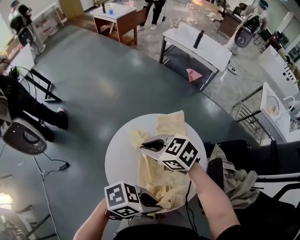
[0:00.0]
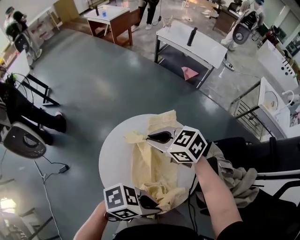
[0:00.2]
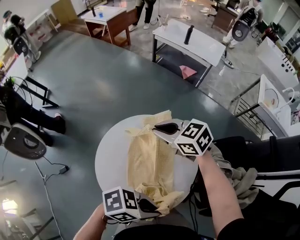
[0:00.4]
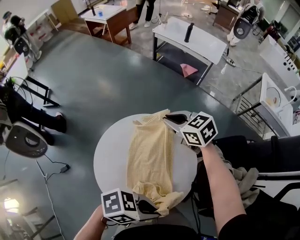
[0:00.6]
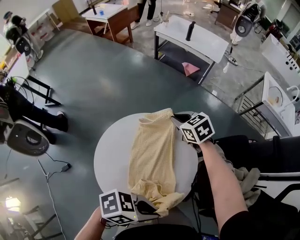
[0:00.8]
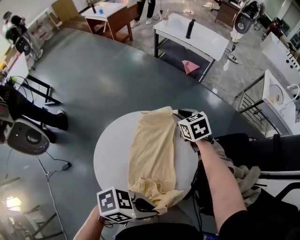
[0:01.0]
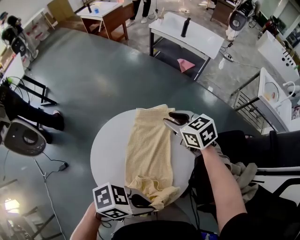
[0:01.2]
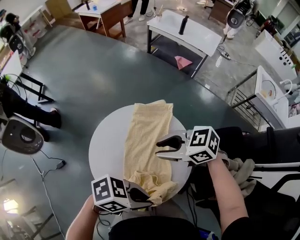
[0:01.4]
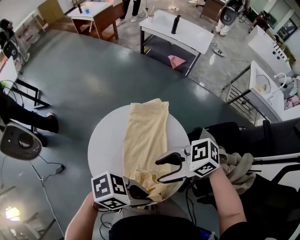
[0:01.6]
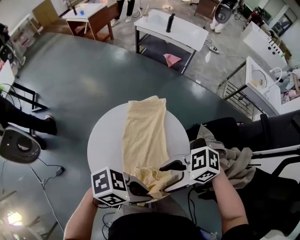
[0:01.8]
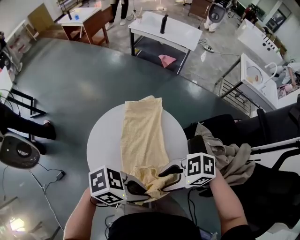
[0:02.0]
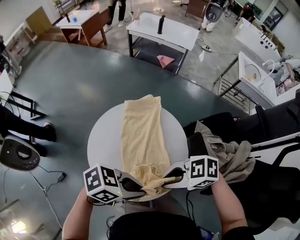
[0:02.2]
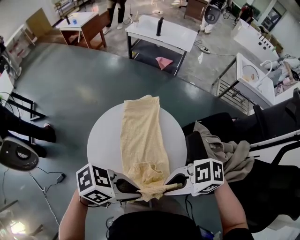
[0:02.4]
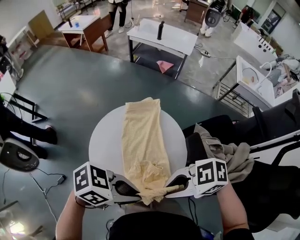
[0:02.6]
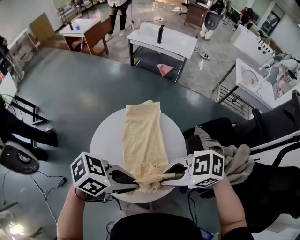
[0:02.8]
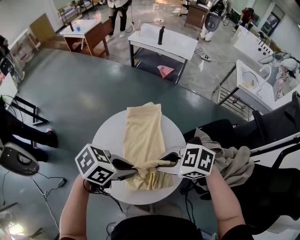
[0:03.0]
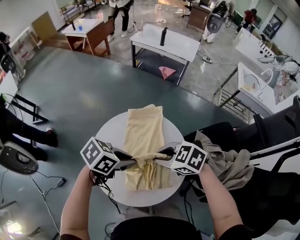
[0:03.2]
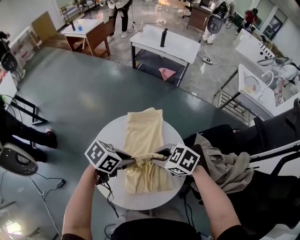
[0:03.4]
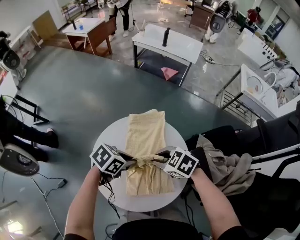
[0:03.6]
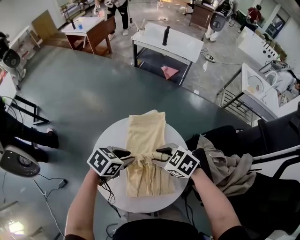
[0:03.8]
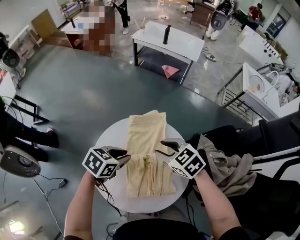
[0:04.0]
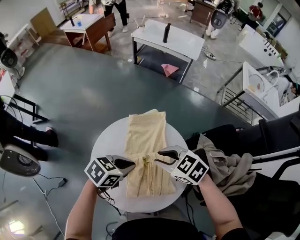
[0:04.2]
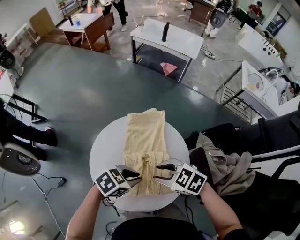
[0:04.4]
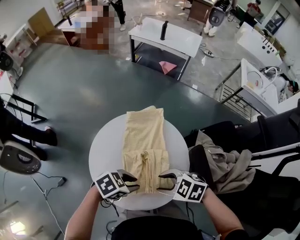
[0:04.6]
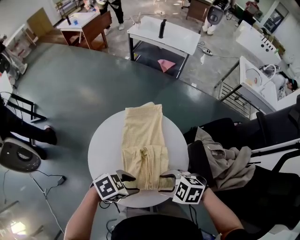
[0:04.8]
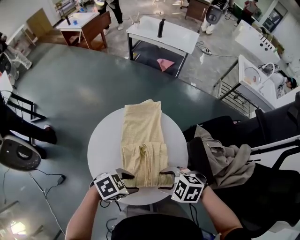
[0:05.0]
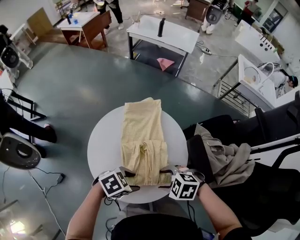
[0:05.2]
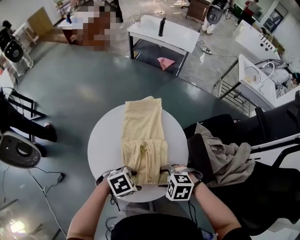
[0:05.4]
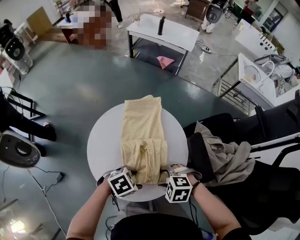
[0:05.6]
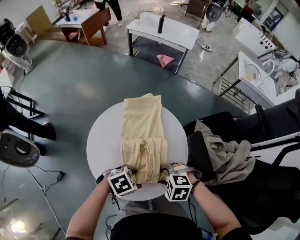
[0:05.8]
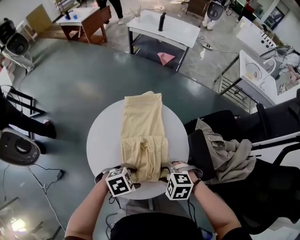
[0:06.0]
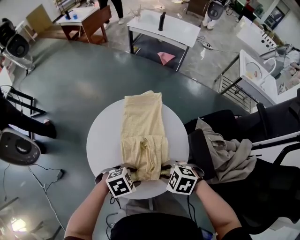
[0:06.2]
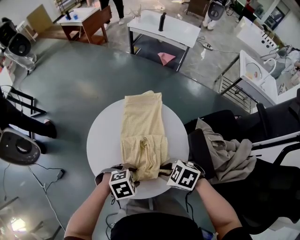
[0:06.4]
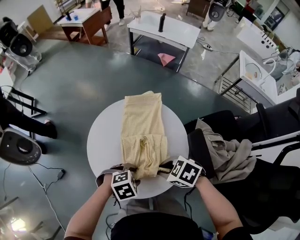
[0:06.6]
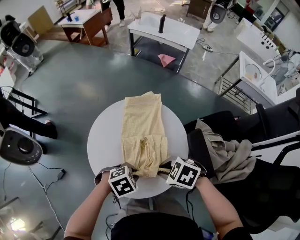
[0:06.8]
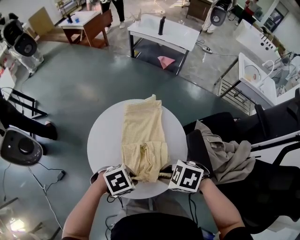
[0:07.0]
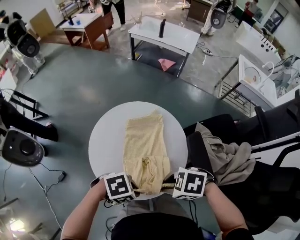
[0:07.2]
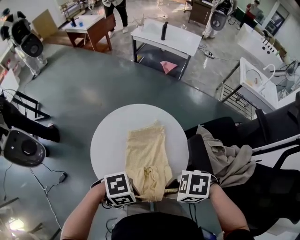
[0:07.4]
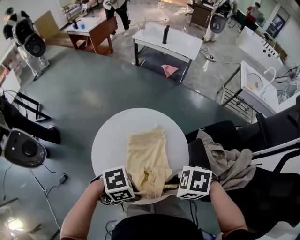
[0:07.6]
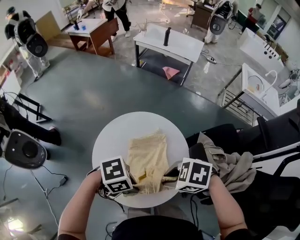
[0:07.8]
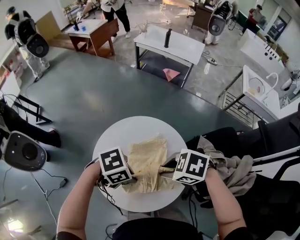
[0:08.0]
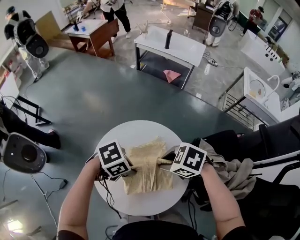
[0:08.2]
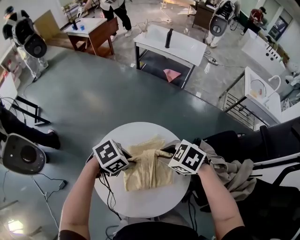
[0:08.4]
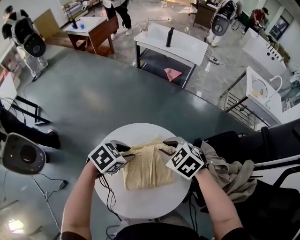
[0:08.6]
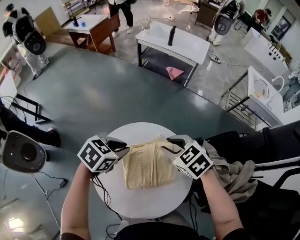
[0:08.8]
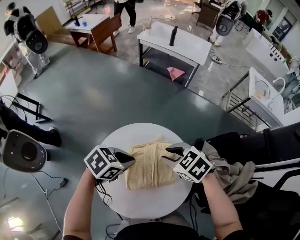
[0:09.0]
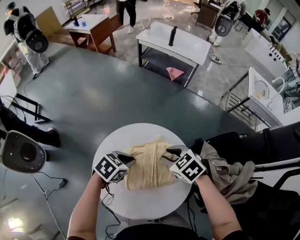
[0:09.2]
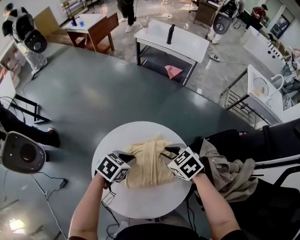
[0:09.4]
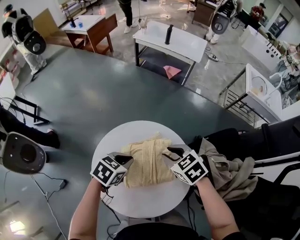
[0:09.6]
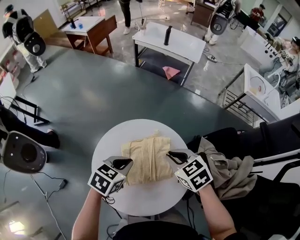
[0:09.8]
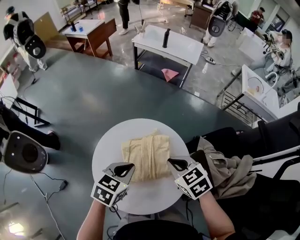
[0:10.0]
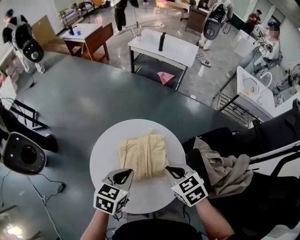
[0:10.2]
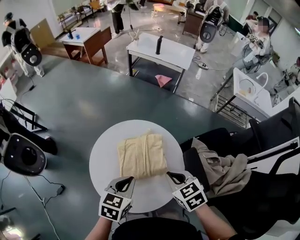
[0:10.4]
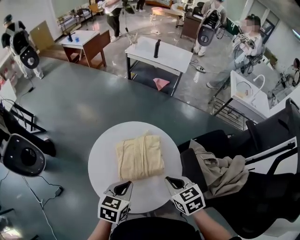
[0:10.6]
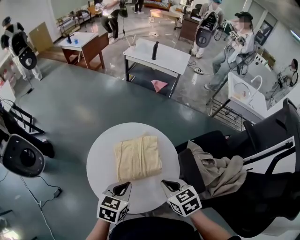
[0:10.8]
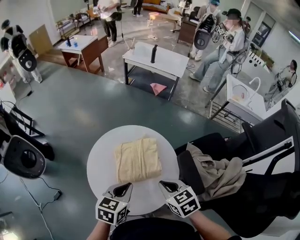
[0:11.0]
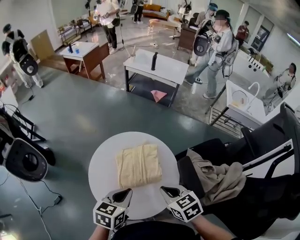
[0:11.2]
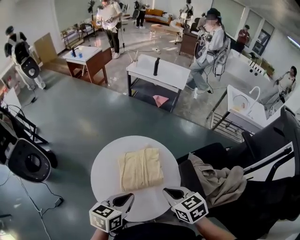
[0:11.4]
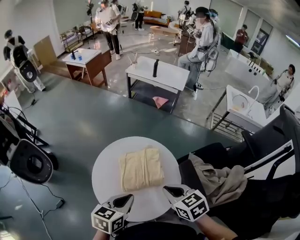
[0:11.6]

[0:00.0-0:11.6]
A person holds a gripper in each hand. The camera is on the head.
0:00.0 to 0:01.4: The left gripper moves roughly 5 cm. The right gripper moves roughly 10 cm downward and comes back, and opens its fingers.
0:01.4 to 0:02.8: The right gripper goes approximately 15 cm forward, and opens, then closes once more; the left gripper heads to the right, covering roughly 5 cm.
0:02.8 to 0:04.4: The two grippers go approximately 10 cm downward. The left gripper changes its angle by about 20 degrees.
0:04.4 to 0:05.8: The right gripper ends up about 15 cm from where it was, and rotates some 30 degrees. Meanwhile the left gripper shifts by about 10 cm, and opens up.
0:05.8 to 0:07.2: The grippers both shift upward by some 10 cm. The left gripper closes its fingers; the right gripper turns by approximately 30 degrees, and closes.
0:07.2 to 0:08.8: The right gripper changes place by approximately 30 cm, and turns by roughly 40 degrees; the left gripper shifts by some 30 cm, and changes its angle by about 40 degrees.
0:08.8 to 0:10.2: The right gripper shifts by some 15 cm, and closes its fingers, while the left gripper reaches about 5 cm downward, then returns, and swivels about 20 degrees.
0:10.2 to 0:11.6: The left gripper goes approximately 10 cm backward; the right gripper shifts about 10 cm backward and upward.

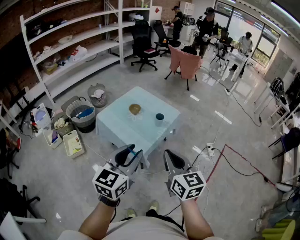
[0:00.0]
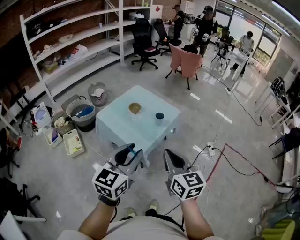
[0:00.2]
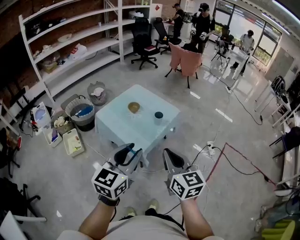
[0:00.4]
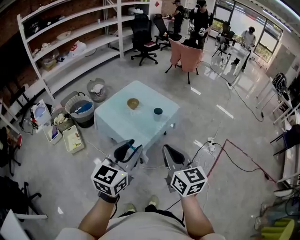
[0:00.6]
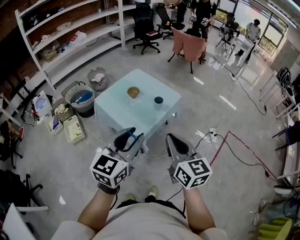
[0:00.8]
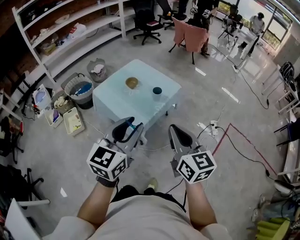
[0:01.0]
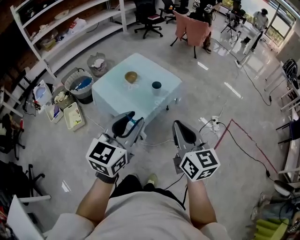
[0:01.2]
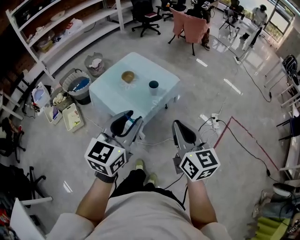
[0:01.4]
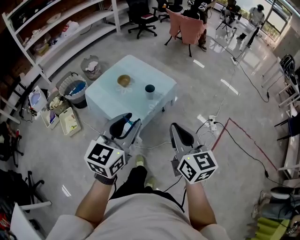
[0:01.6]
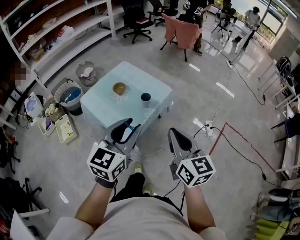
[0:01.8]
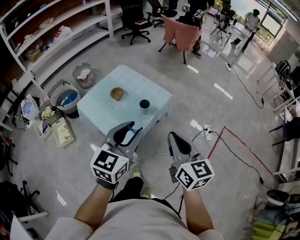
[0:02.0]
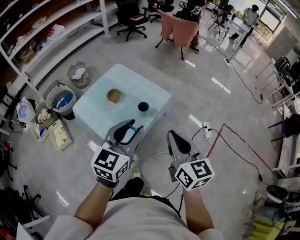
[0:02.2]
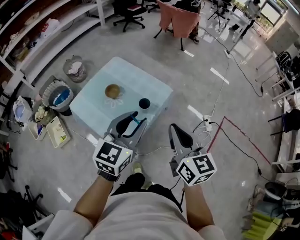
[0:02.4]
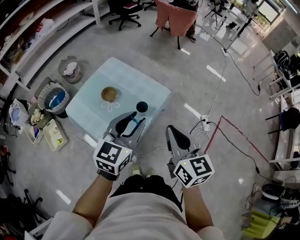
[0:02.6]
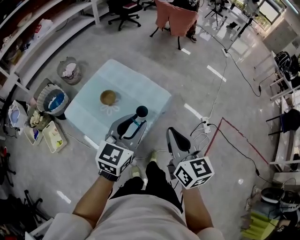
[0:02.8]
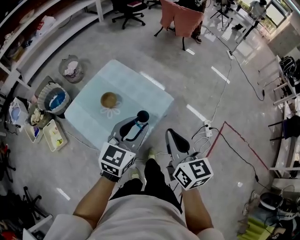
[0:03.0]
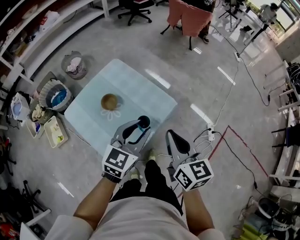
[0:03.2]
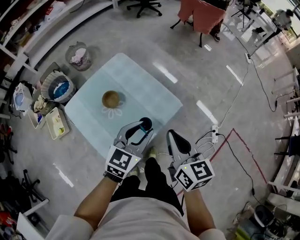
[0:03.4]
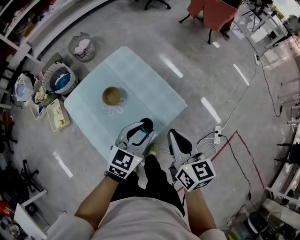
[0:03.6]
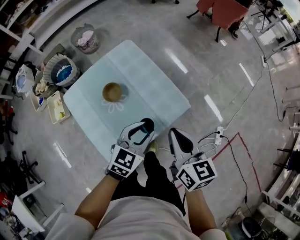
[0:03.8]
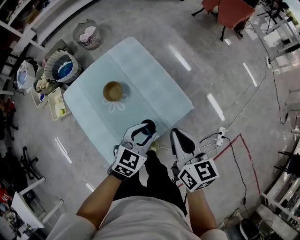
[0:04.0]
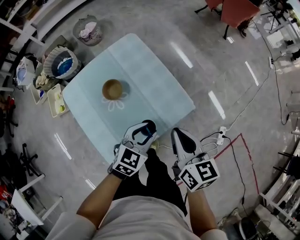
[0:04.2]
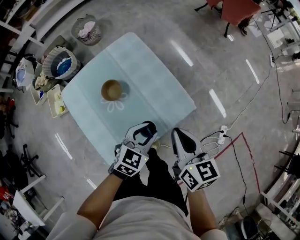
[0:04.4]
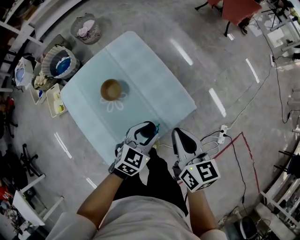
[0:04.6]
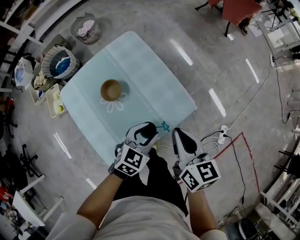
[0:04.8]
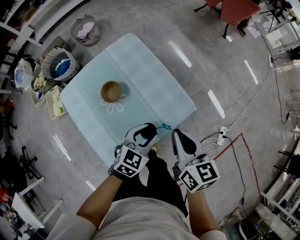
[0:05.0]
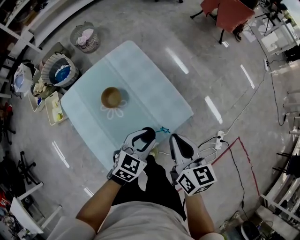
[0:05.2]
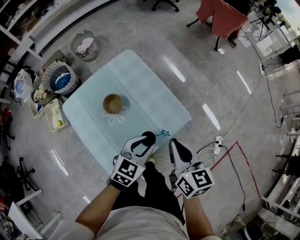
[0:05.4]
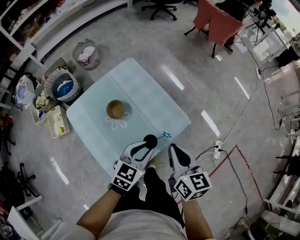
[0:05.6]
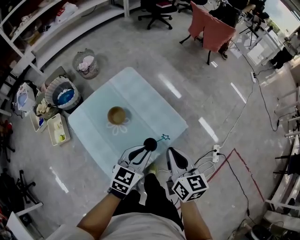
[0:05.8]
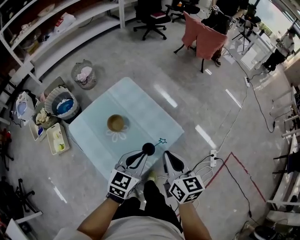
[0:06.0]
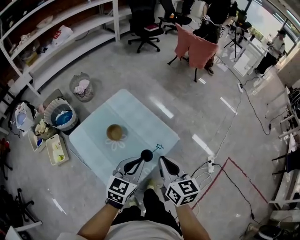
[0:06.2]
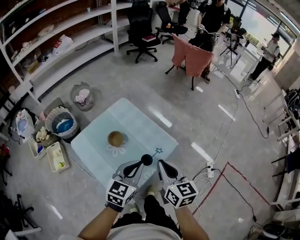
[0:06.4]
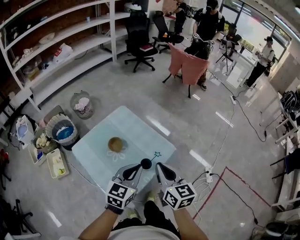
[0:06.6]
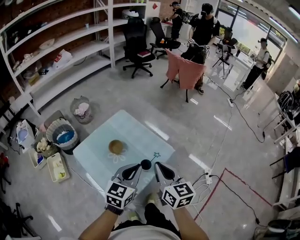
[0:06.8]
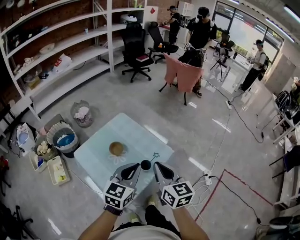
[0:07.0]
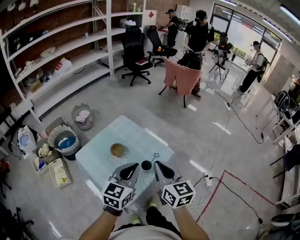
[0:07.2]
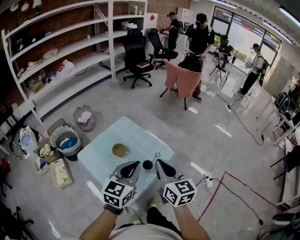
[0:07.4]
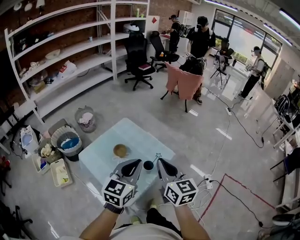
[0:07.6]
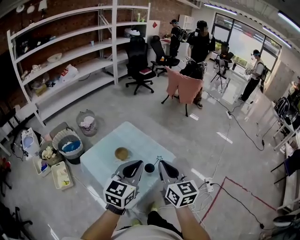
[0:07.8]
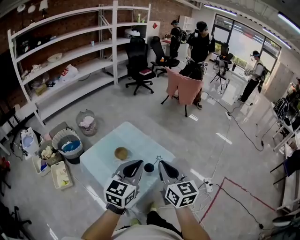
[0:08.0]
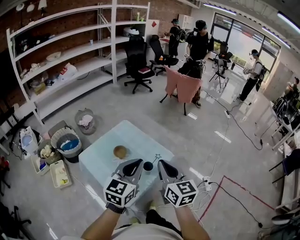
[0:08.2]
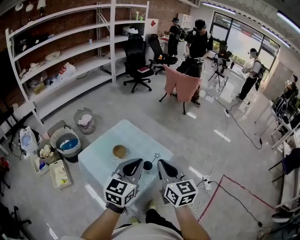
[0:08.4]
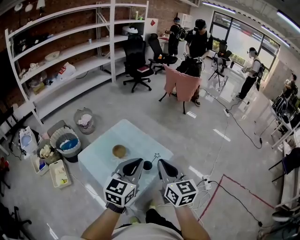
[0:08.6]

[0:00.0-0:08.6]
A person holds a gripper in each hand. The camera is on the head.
0:00.0 to 0:01.4: The two grippers go roughly 10 cm to the right and forward.
0:01.4 to 0:02.8: Both grippers travel together forward, about 25 cm.
0:02.8 to 0:04.4: The right gripper moves forward and downward, approximately 25 cm, and turns by some 20 degrees; the left gripper moves downward and forward, roughly 30 cm, and changes its angle by some 20 degrees.
0:04.4 to 0:05.8: The left gripper heads upward, covering some 10 cm. The right gripper moves roughly 5 cm.
0:05.8 to 0:07.2: Both grippers travel together upward and backward, roughly 20 cm.
0:07.2 to 0:08.6: The left gripper heads upward, covering some 5 cm.

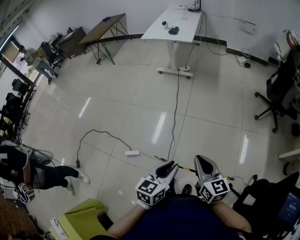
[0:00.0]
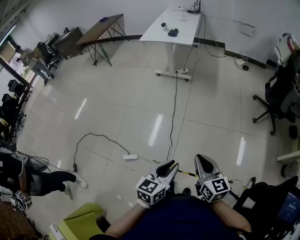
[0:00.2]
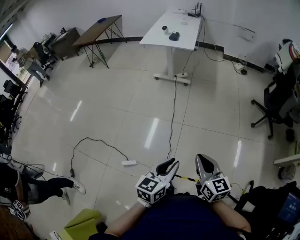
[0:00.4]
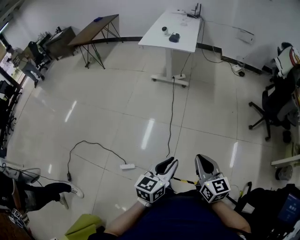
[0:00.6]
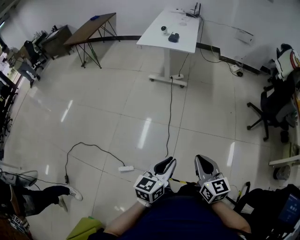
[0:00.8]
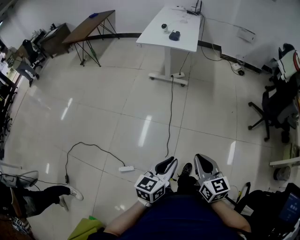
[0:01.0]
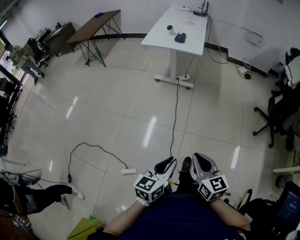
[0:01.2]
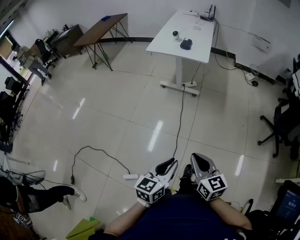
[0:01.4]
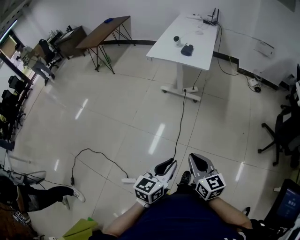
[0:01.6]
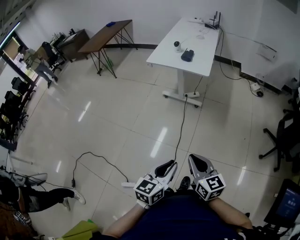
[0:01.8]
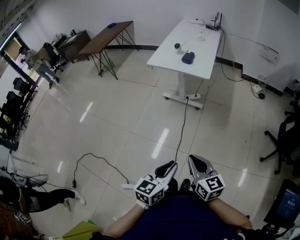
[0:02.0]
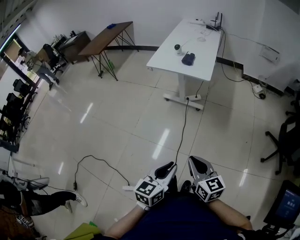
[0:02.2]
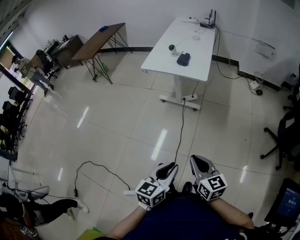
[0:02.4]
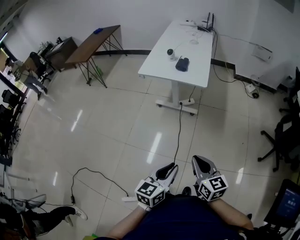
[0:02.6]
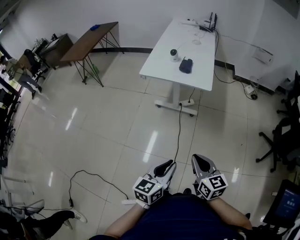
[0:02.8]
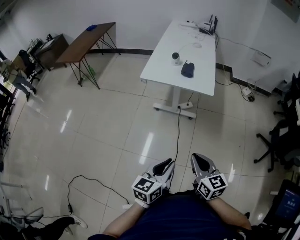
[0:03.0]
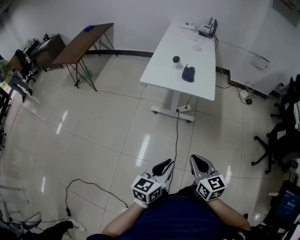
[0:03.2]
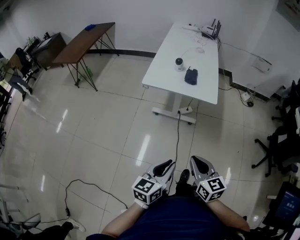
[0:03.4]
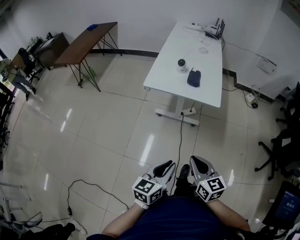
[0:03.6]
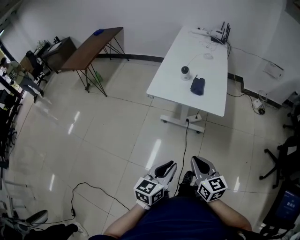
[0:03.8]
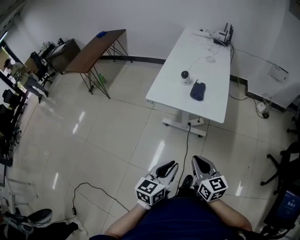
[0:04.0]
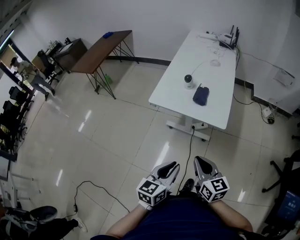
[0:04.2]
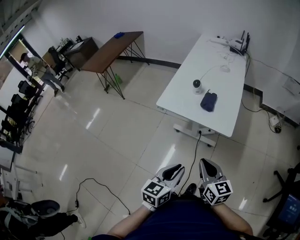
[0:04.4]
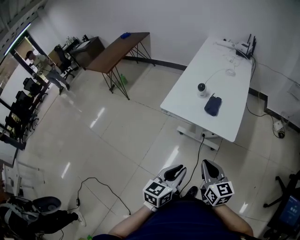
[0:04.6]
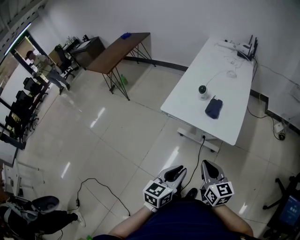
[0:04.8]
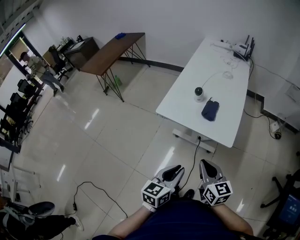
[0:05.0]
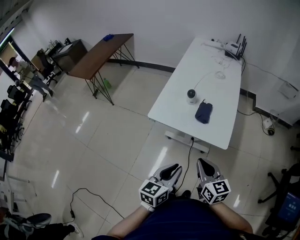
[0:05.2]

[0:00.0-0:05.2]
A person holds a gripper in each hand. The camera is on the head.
0:00.0 to 0:01.8: The two grippers go about 40 cm forward.
0:01.8 to 0:03.4: The grippers both shift forward and to the left by about 30 cm.
0:03.4 to 0:05.2: The grippers both shift forward by approximately 25 cm.
